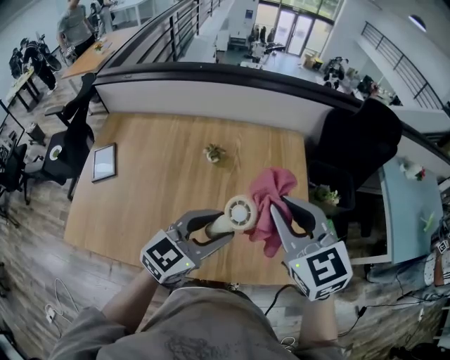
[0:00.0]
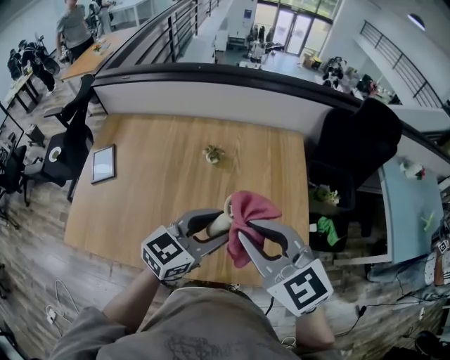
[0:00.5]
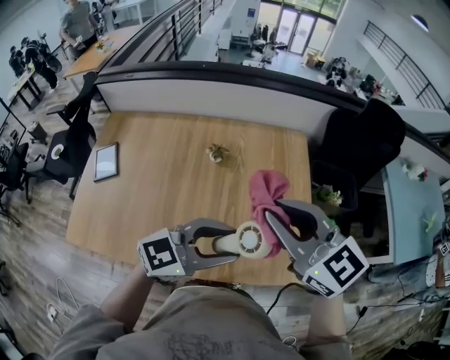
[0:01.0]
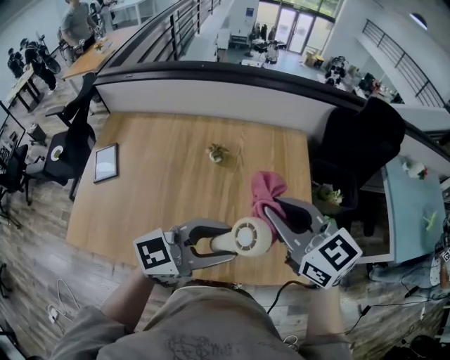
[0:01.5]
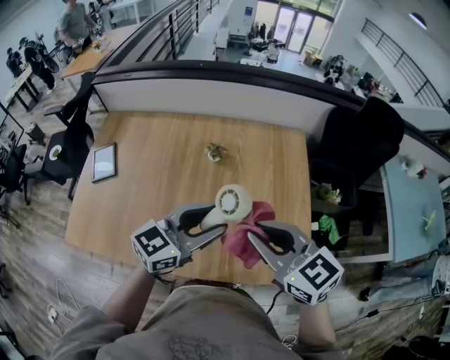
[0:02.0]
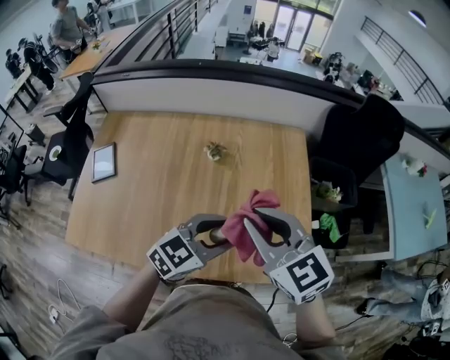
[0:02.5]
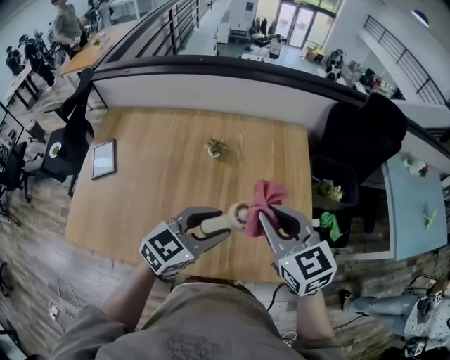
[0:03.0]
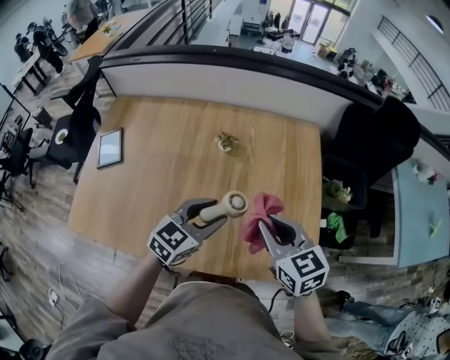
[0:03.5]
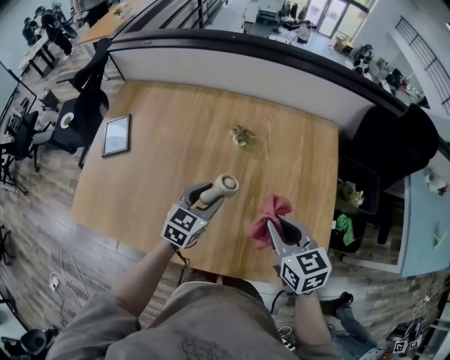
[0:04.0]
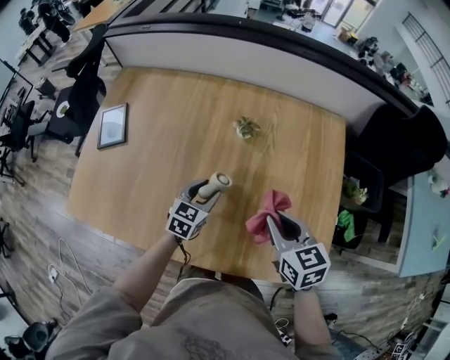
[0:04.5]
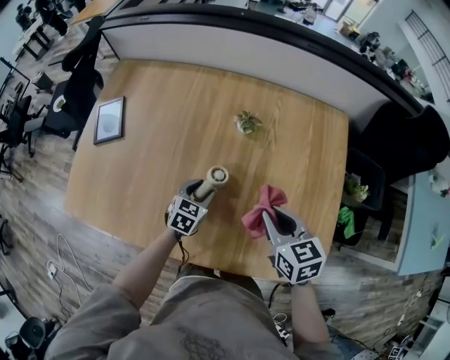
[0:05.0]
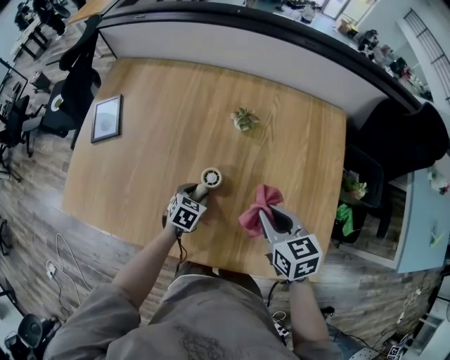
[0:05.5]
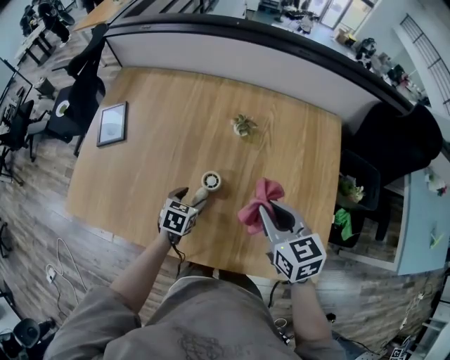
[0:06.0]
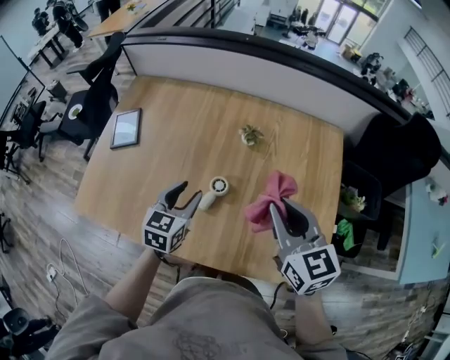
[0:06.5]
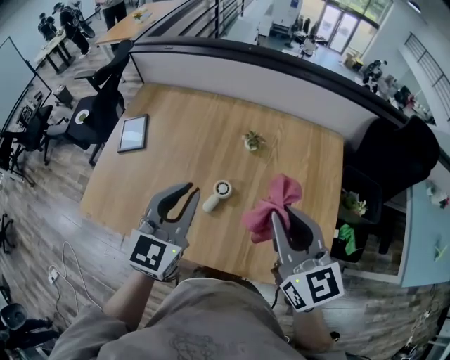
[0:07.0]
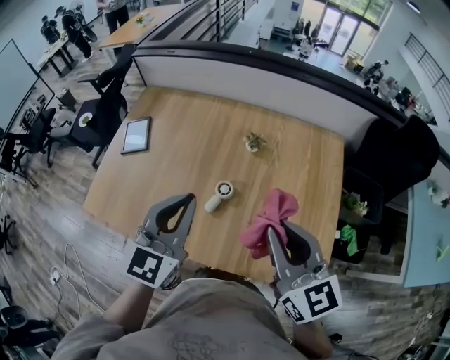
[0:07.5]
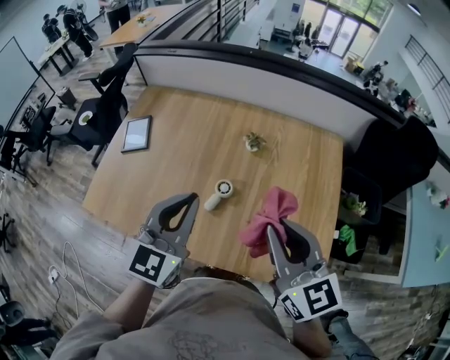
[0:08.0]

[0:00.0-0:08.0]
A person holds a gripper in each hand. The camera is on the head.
0:00.0 to 0:02.0: The right gripper shifts by roughly 10 cm, and turns by about 20 degrees.
0:02.0 to 0:04.0: The left gripper goes about 20 cm downward, to the left and forward, and rotates about 30 degrees; the right gripper heads downward and forward, covering roughly 15 cm.
0:04.0 to 0:06.0: The left gripper travels downward and to the left by some 15 cm, and rotates approximately 30 degrees.
0:06.0 to 0:08.0: The right gripper goes about 20 cm upward and backward, and swivels about 20 degrees, while the left gripper travels upward by approximately 35 cm, tilts its fingers some 40 degrees upward, and closes.

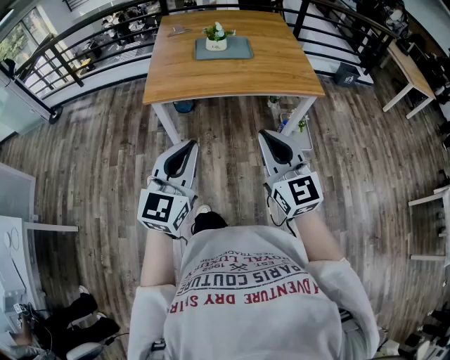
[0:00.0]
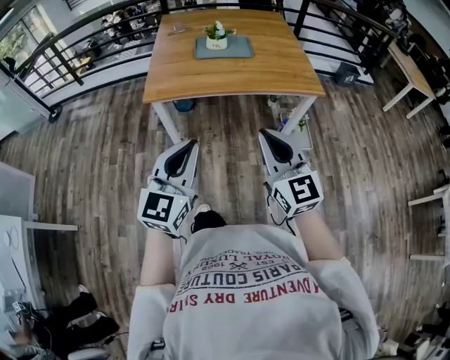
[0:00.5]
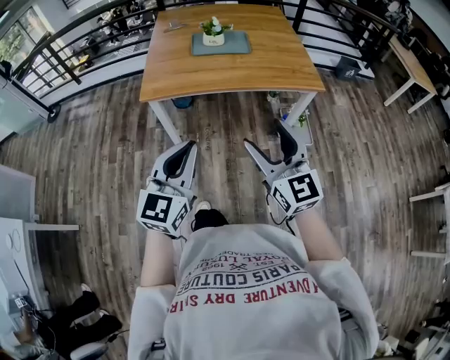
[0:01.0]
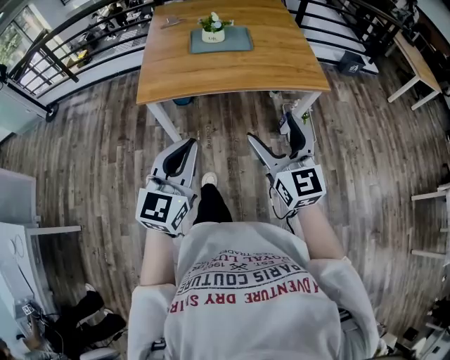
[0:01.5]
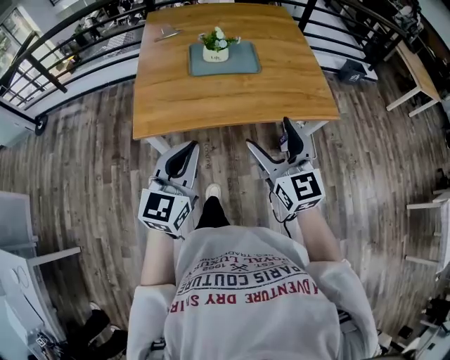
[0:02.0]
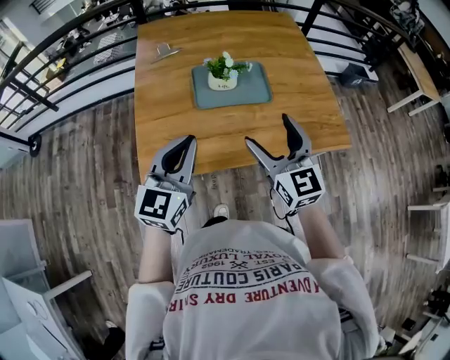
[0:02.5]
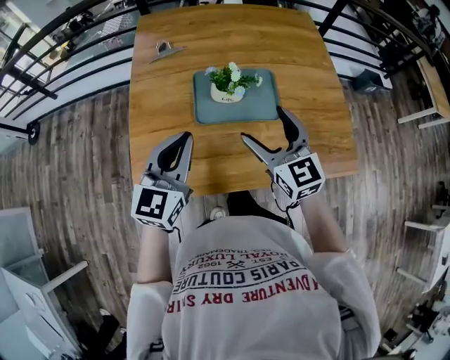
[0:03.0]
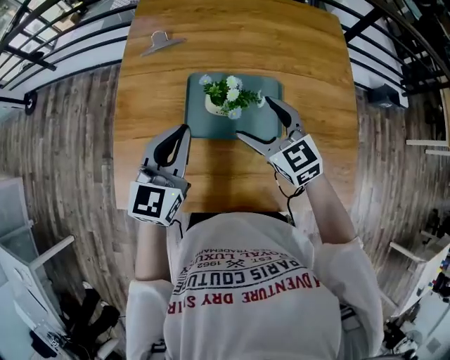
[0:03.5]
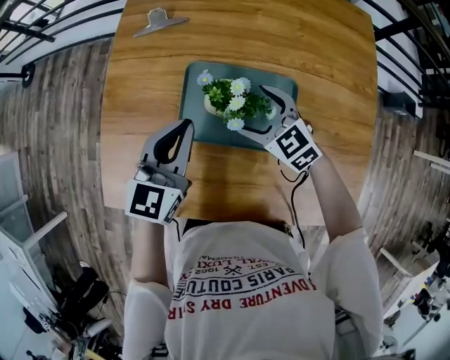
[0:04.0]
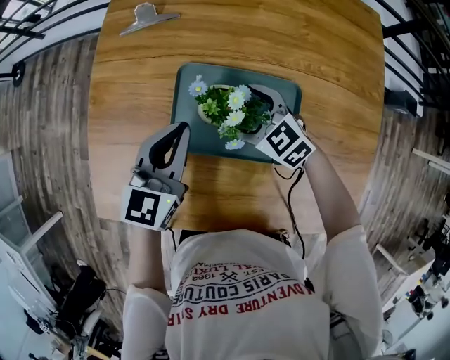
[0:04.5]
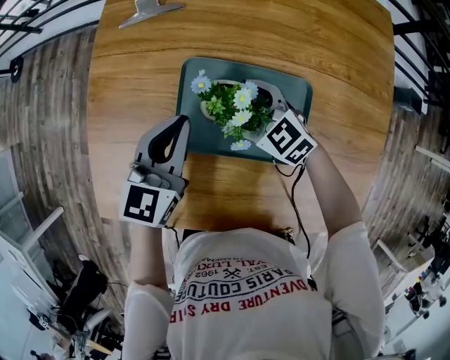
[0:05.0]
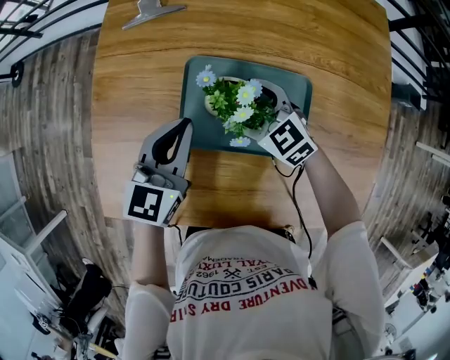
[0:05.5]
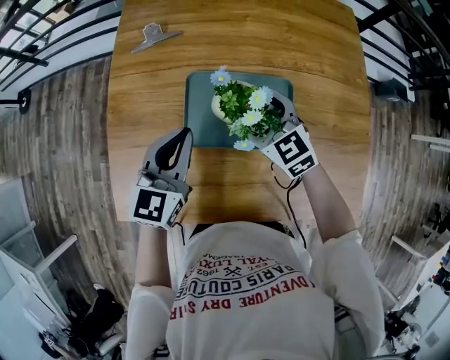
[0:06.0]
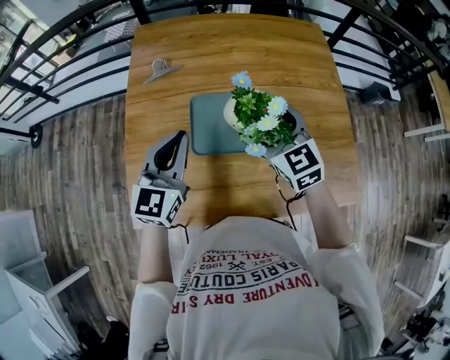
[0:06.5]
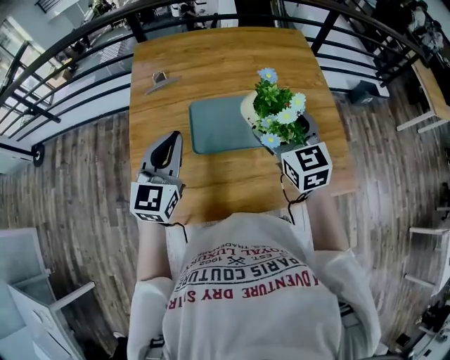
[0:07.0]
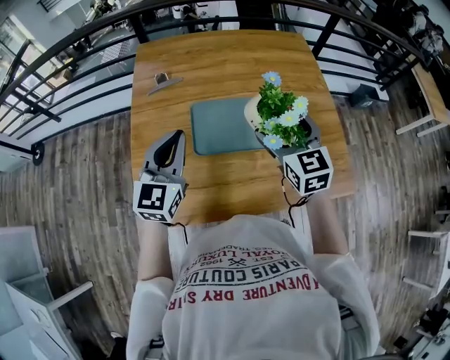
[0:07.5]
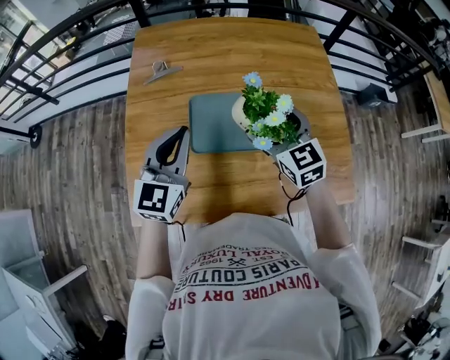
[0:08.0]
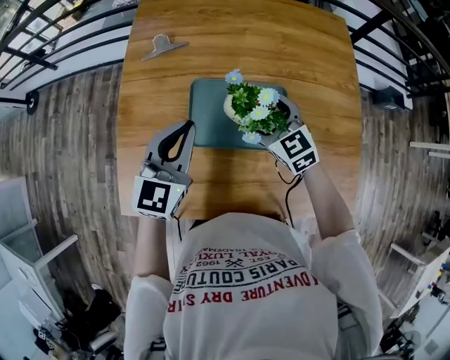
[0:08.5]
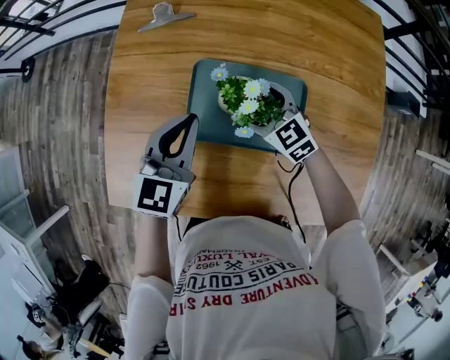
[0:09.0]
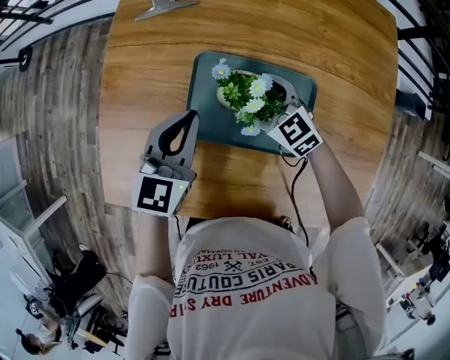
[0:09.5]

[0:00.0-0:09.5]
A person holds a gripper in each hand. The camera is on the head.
0:00.0 to 0:02.0: The two grippers go about 25 cm forward. The right gripper opens.
0:02.0 to 0:04.0: The two grippers travel together, about 50 cm. The right gripper tips its fingers downward by some 30 degrees.
0:04.0 to 0:05.5: The two grippers go about 5 cm downward.
0:05.5 to 0:07.5: Both grippers move upward, roughly 20 cm. The right gripper changes its angle by roughly 50 degrees, while the left gripper changes its angle by roughly 20 degrees.
0:07.5 to 0:09.5: The right gripper travels downward by about 25 cm, and rotates roughly 50 degrees. Meanwhile the left gripper is displaced downward by some 15 cm, and rotates approximately 20 degrees.

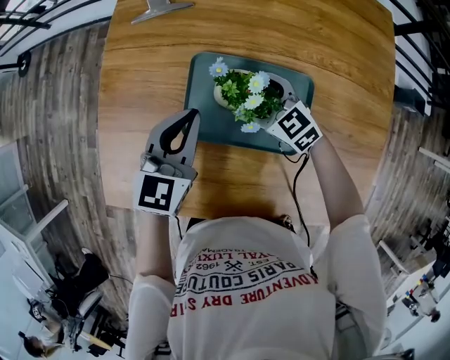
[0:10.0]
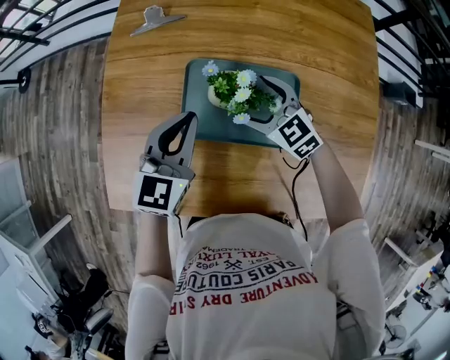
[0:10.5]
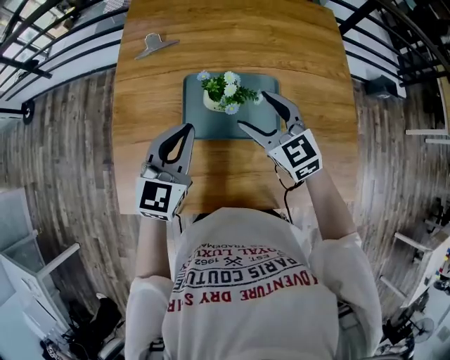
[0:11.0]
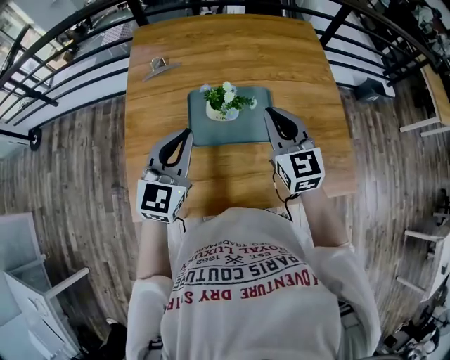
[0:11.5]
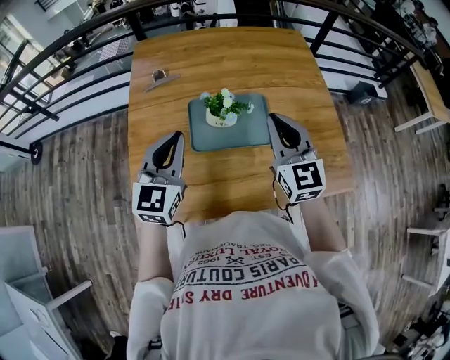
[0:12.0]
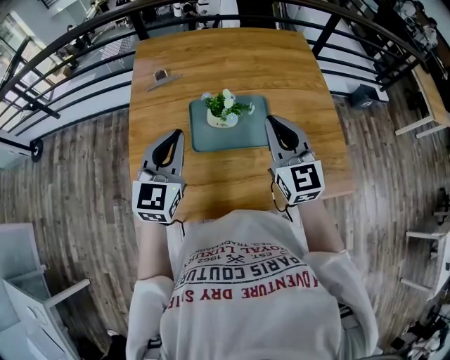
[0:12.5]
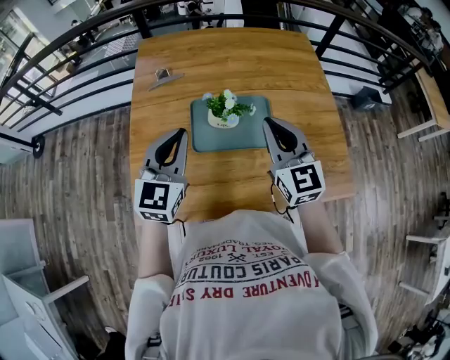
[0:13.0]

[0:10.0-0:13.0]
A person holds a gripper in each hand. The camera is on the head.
0:10.0 to 0:11.5: The right gripper is displaced upward by roughly 25 cm, changes its angle by about 50 degrees, and closes its fingers, while the left gripper goes roughly 15 cm upward, and swivels approximately 20 degrees.
0:11.5 to 0:13.0: The right gripper shifts by some 5 cm.

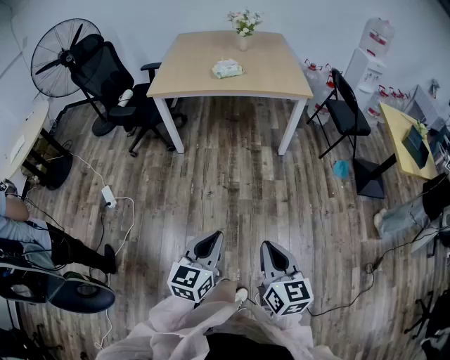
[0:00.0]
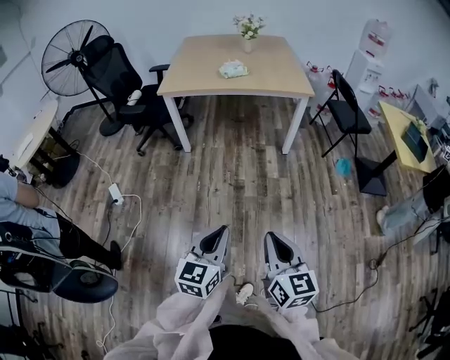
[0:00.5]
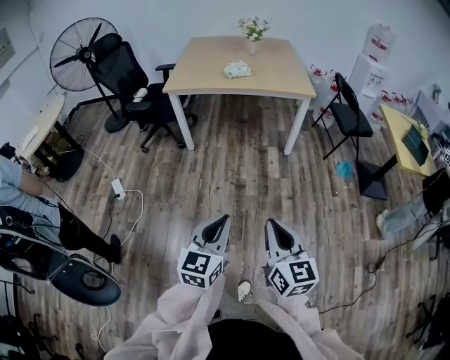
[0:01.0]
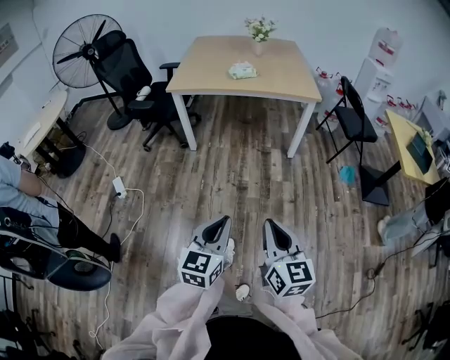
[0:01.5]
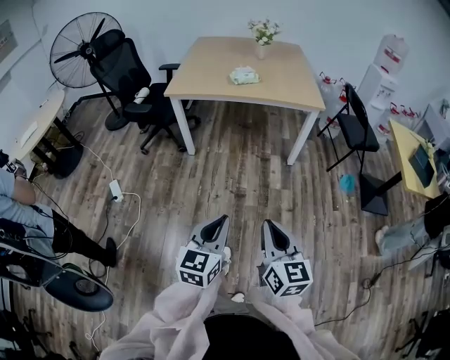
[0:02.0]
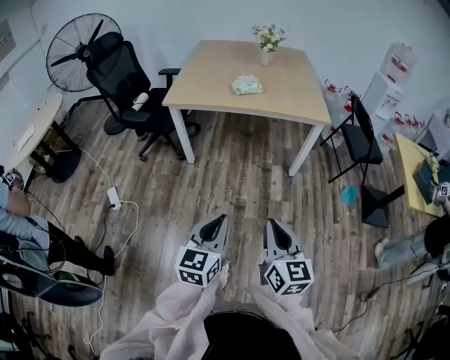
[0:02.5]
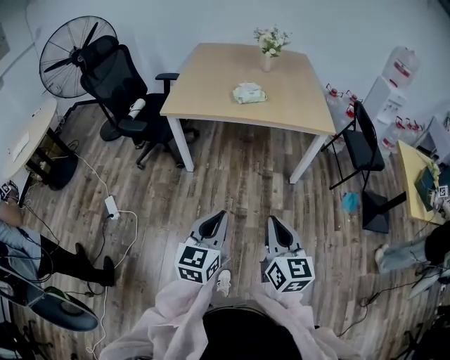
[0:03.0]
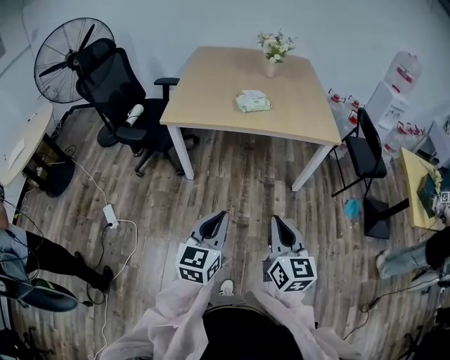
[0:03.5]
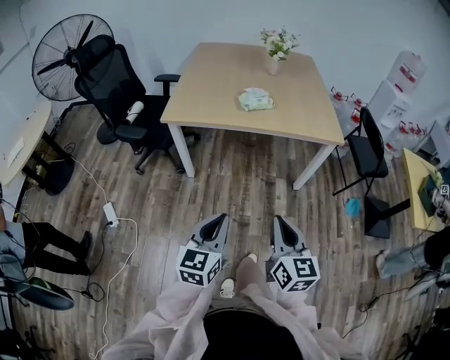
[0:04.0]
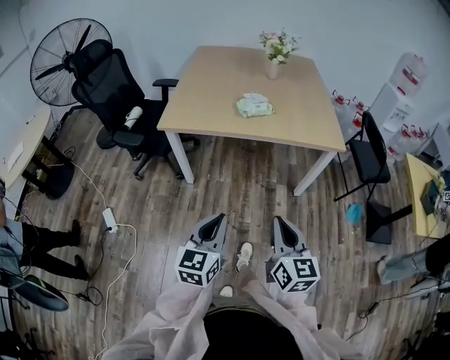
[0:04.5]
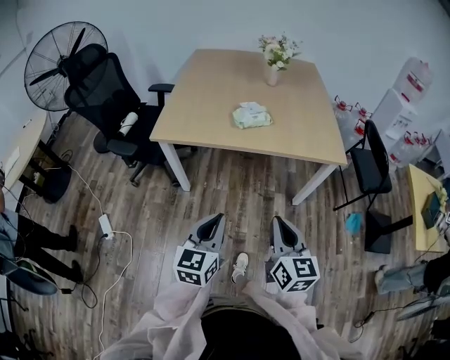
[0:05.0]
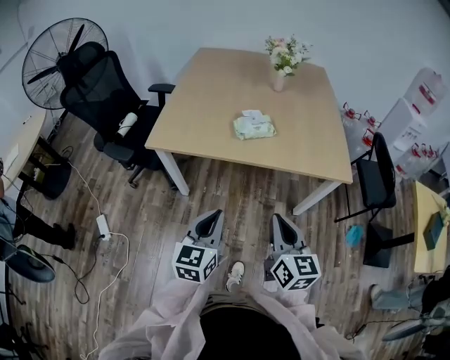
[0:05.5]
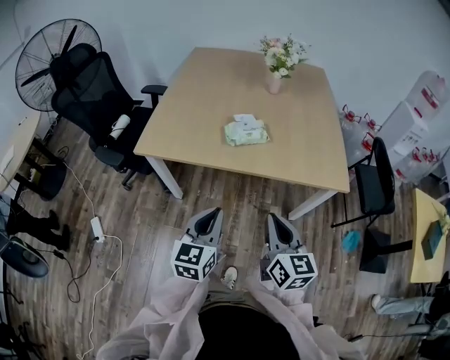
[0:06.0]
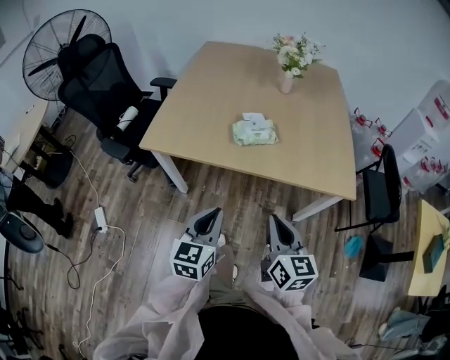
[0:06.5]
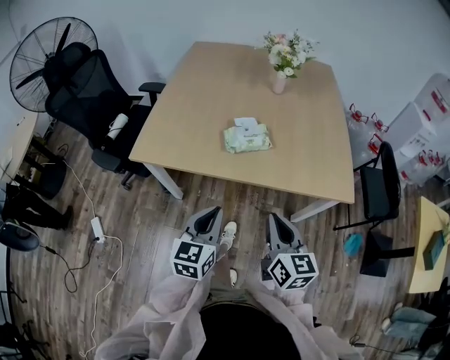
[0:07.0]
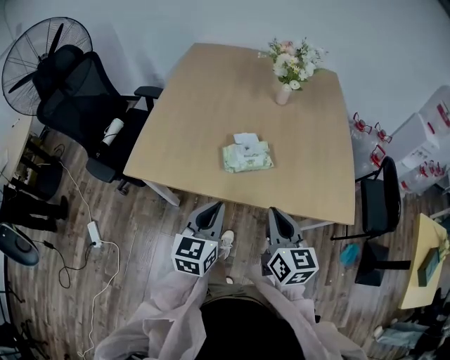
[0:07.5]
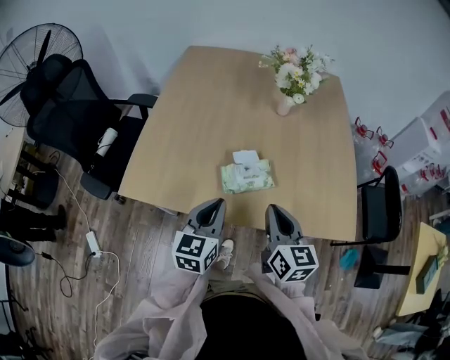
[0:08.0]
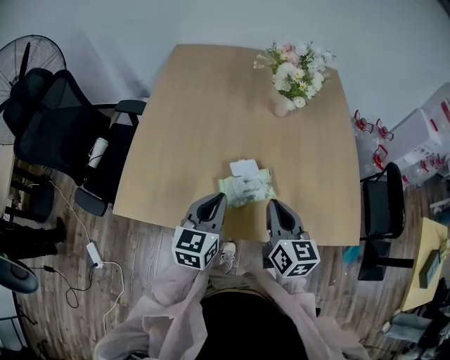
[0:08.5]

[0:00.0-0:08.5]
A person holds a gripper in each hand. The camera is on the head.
0:00.0 to 0:02.0: The right gripper heads forward, covering some 5 cm; the left gripper moves approximately 5 cm.
0:02.0 to 0:04.0: The grippers both shift forward by about 25 cm.
0:04.0 to 0:06.5: Both grippers move forward, roughly 30 cm.
0:06.5 to 0:08.5: Both grippers move forward, some 30 cm.
